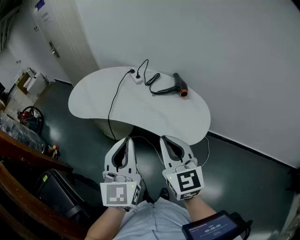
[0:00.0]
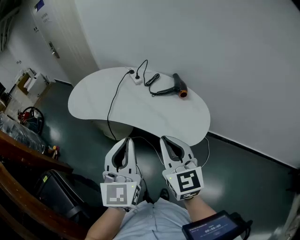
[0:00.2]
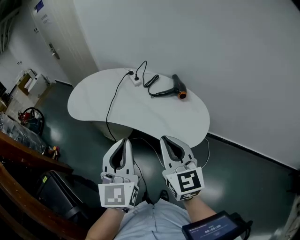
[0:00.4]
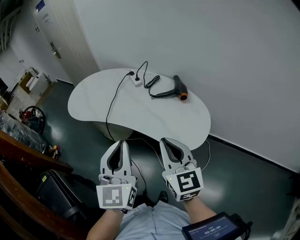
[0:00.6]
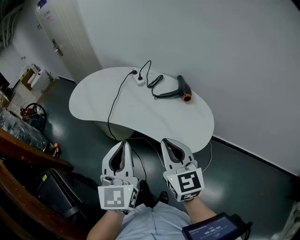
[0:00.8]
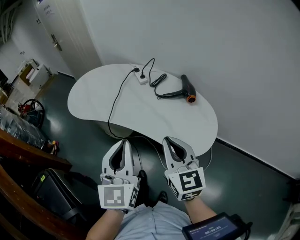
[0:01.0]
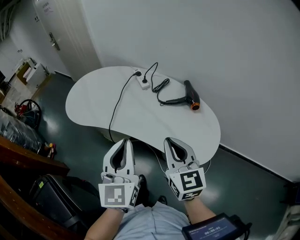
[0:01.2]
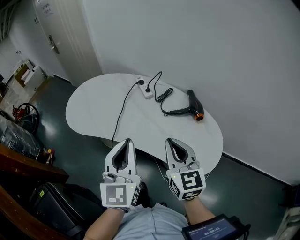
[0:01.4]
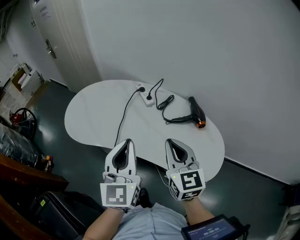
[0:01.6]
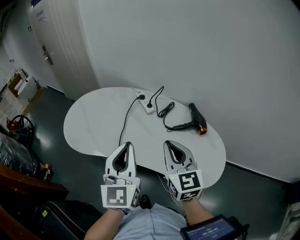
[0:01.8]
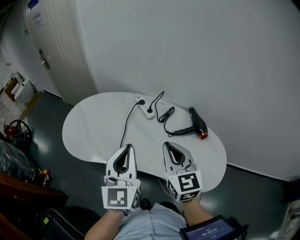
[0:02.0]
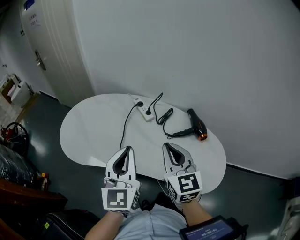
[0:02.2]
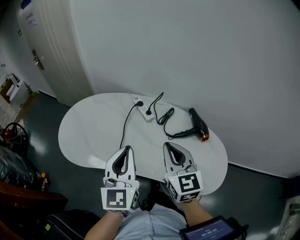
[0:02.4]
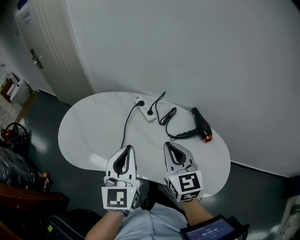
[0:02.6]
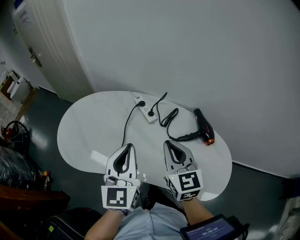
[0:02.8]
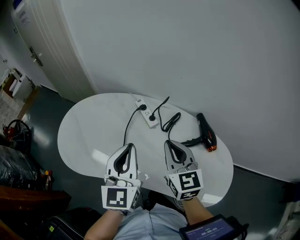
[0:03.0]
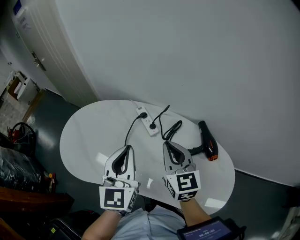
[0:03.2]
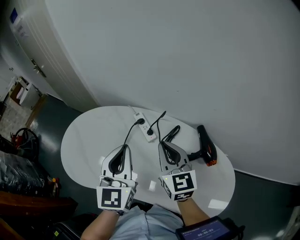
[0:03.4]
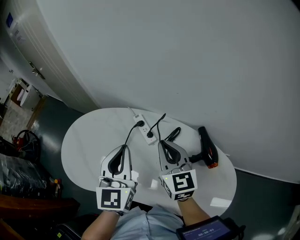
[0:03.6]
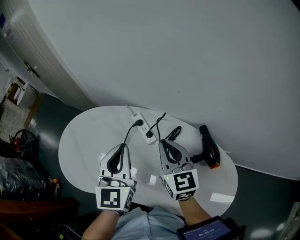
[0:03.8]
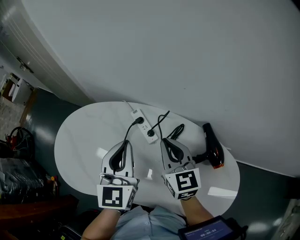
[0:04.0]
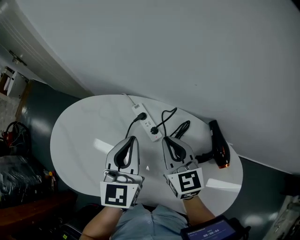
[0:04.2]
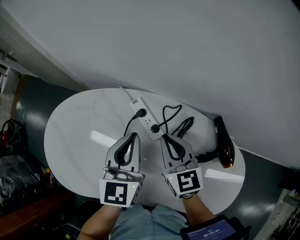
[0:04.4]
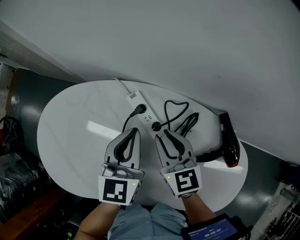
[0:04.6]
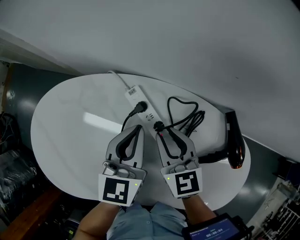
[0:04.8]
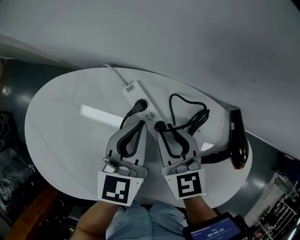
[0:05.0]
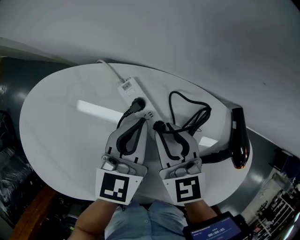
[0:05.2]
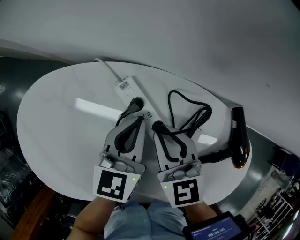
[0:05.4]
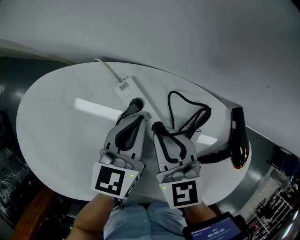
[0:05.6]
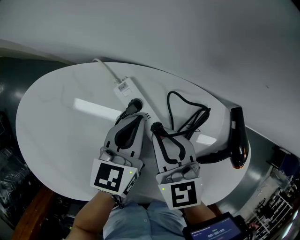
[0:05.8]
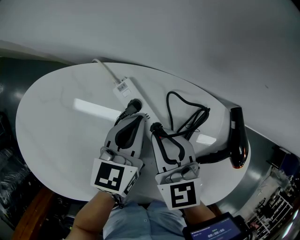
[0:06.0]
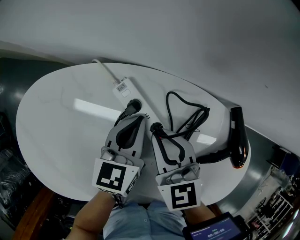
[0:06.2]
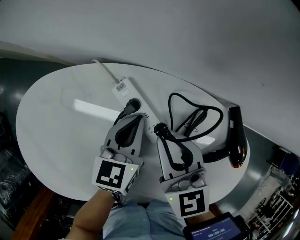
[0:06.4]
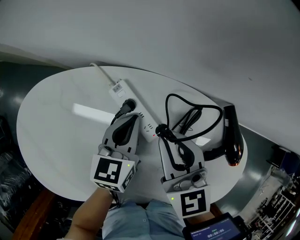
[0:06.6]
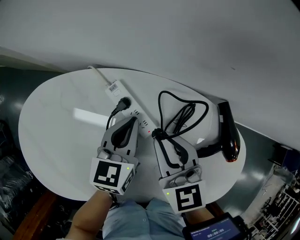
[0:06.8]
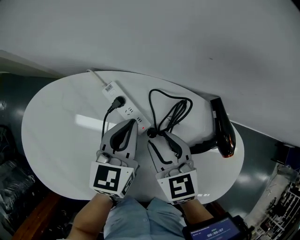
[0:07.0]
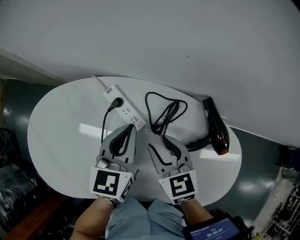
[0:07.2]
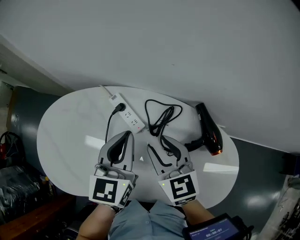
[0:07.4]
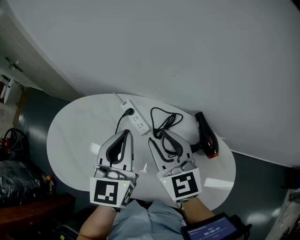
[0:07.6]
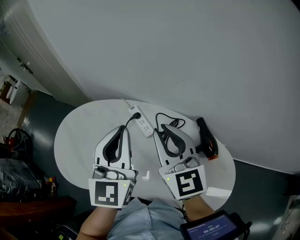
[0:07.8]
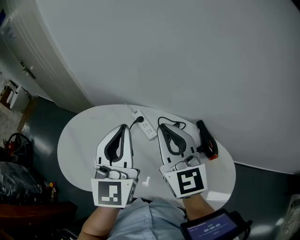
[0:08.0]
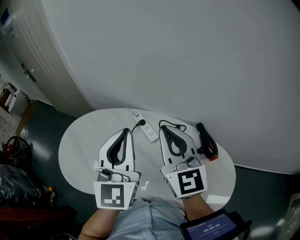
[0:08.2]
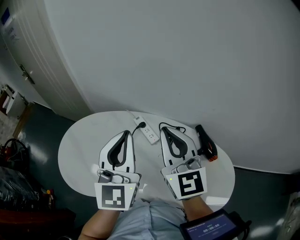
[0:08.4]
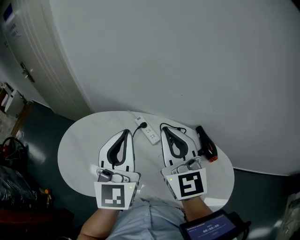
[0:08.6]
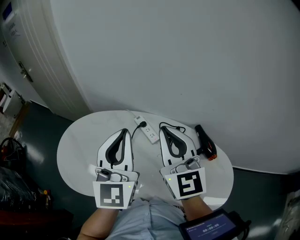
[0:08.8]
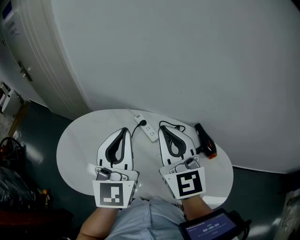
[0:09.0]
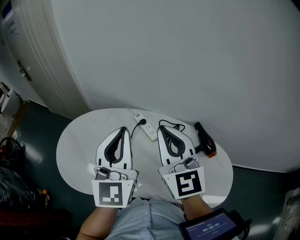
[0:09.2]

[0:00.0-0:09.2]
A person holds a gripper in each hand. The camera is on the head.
0:00.0 to 0:01.6: Both grippers travel together forward, approximately 20 cm.
0:01.6 to 0:03.0: Both grippers move forward, about 15 cm.
0:03.0 to 0:04.6: Both grippers move forward and downward, roughly 25 cm. The right gripper opens up.
0:04.6 to 0:06.2: The left gripper goes roughly 10 cm downward, and swivels approximately 20 degrees.
0:06.2 to 0:07.6: The left gripper moves upward and backward, about 30 cm, and turns by some 30 degrees. The right gripper moves up and down over some 20 cm, changing direction 2 times, changes its angle by roughly 20 degrees, and opens up.
0:07.6 to 0:09.2: The left gripper moves upward and to the left, approximately 10 cm. Meanwhile the right gripper heads upward, covering some 10 cm, and closes its fingers.

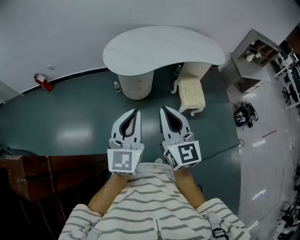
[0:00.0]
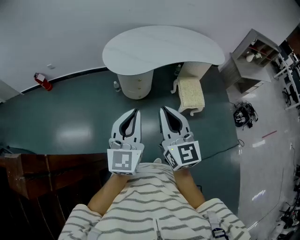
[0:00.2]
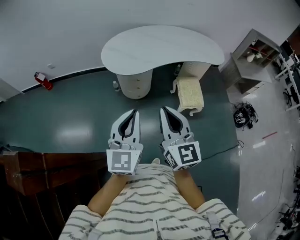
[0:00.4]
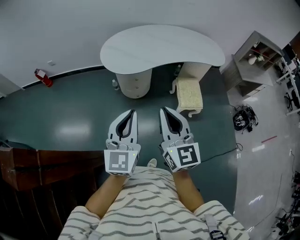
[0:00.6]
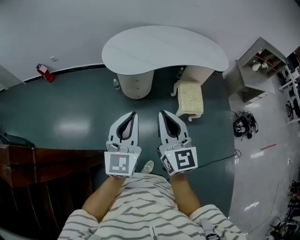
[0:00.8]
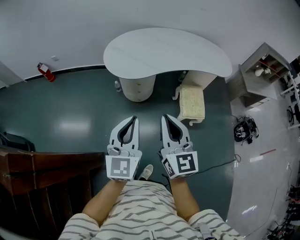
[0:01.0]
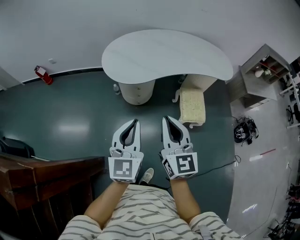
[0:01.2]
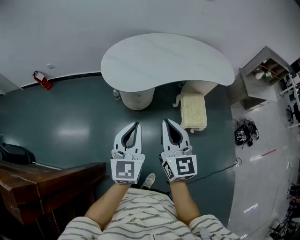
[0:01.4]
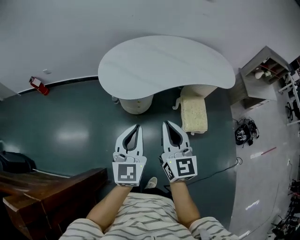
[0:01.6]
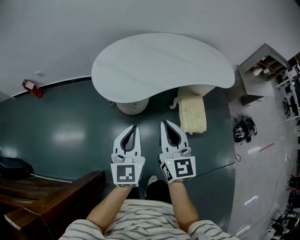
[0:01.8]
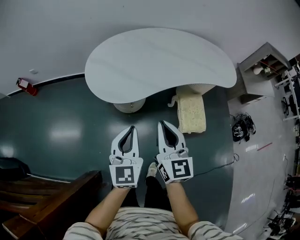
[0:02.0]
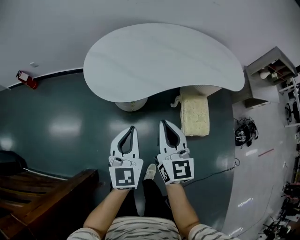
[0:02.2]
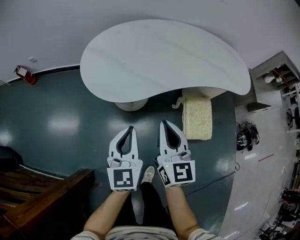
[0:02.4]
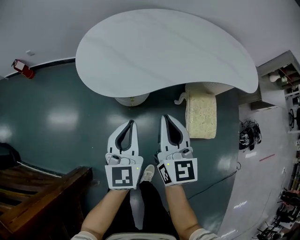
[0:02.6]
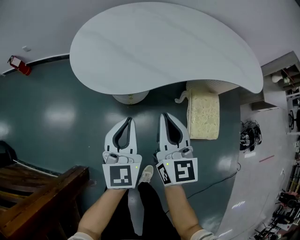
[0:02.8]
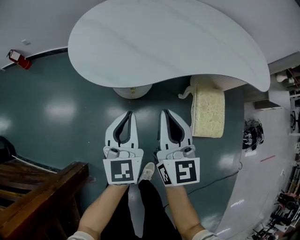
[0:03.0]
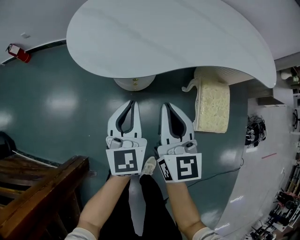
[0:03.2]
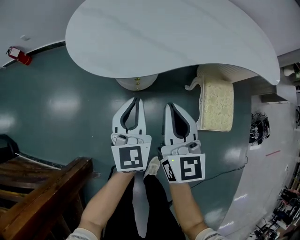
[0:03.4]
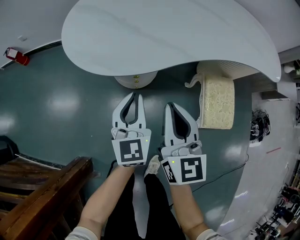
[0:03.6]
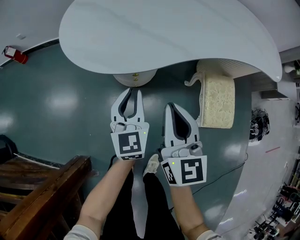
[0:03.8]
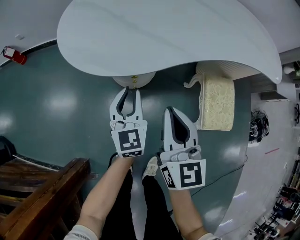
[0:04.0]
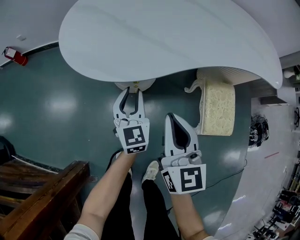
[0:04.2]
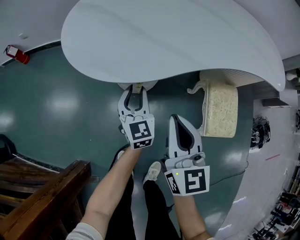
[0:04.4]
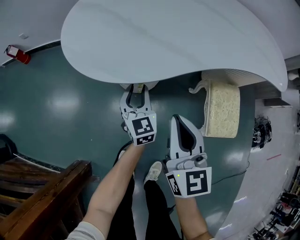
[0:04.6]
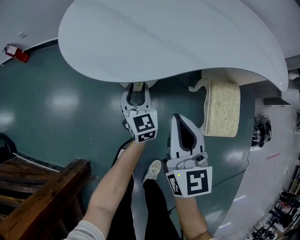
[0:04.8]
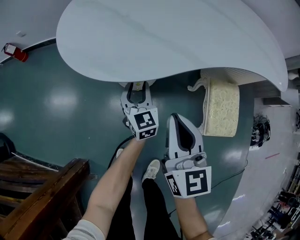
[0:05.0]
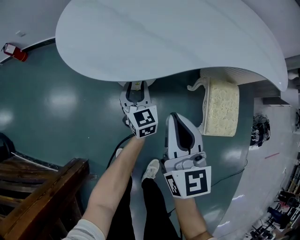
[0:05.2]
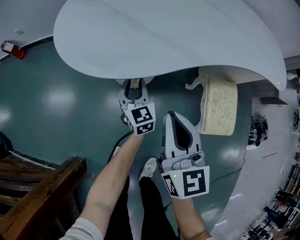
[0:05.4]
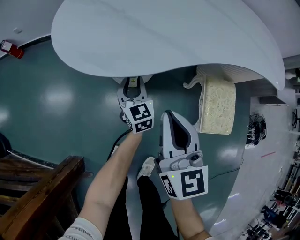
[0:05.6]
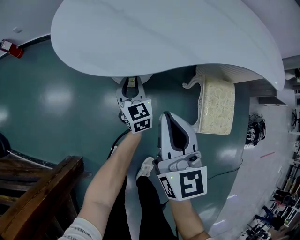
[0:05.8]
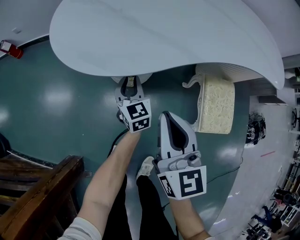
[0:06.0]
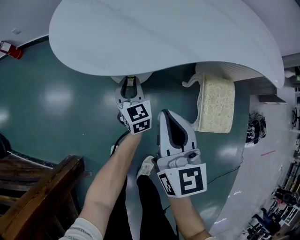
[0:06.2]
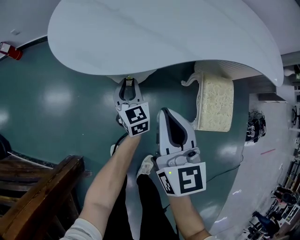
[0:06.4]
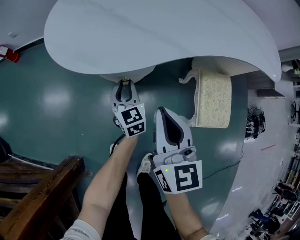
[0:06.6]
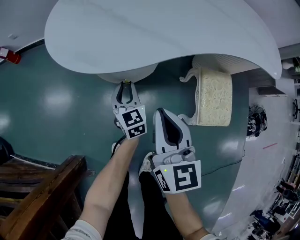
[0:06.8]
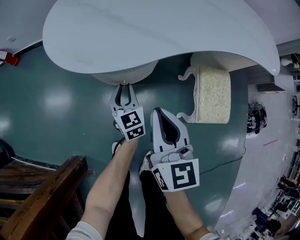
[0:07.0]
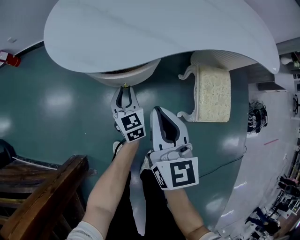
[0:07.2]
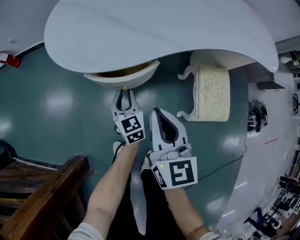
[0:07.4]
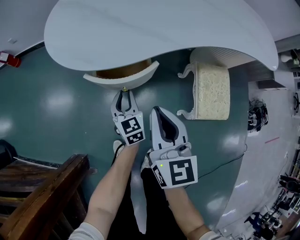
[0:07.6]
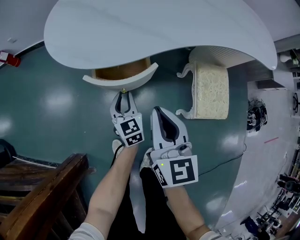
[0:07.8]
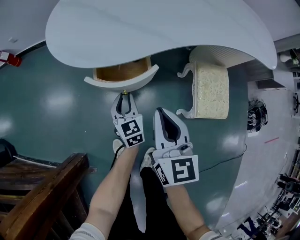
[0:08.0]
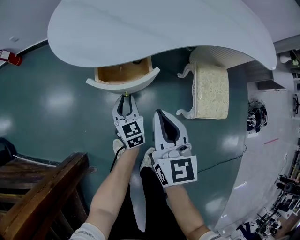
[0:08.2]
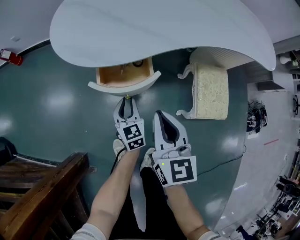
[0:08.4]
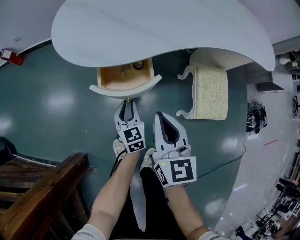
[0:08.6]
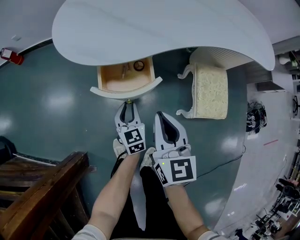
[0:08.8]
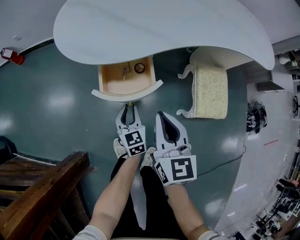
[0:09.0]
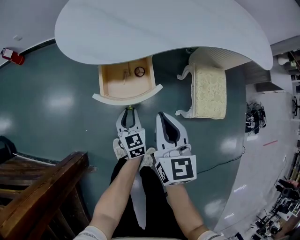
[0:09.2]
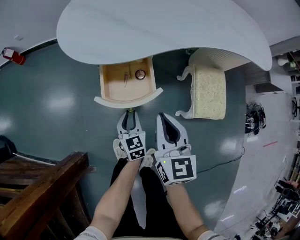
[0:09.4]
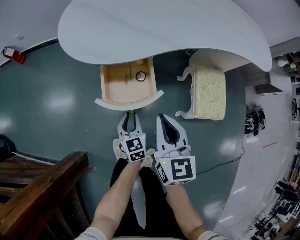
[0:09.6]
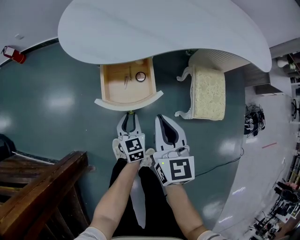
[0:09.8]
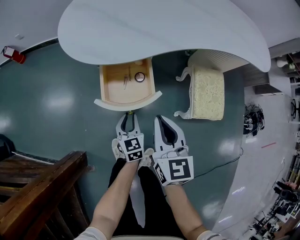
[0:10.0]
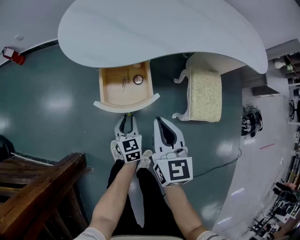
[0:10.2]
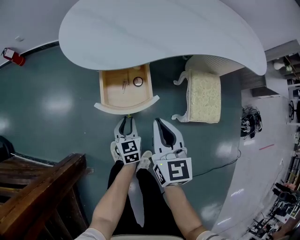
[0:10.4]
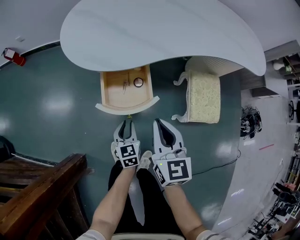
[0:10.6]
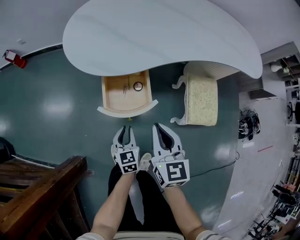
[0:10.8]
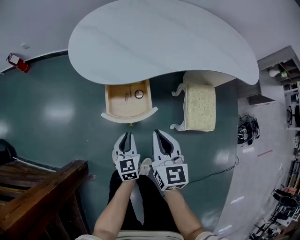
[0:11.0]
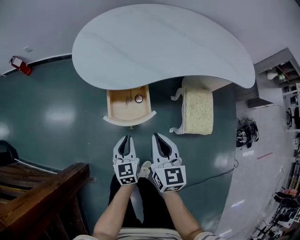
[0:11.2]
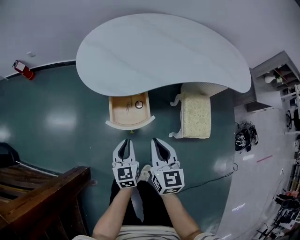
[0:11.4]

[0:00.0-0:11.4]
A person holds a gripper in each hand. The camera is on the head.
0:00.0 to 0:01.4: The right gripper travels forward by roughly 15 cm. The left gripper goes some 15 cm forward and downward.
0:01.4 to 0:02.8: Both grippers travel together downward and forward, approximately 35 cm.
0:02.8 to 0:04.2: The right gripper moves downward, approximately 10 cm; the left gripper goes about 20 cm downward and forward, and opens.
0:04.2 to 0:05.6: The left gripper heads downward, covering roughly 10 cm.
0:05.6 to 0:07.2: The left gripper travels backward by some 5 cm.
0:07.2 to 0:08.6: The left gripper shifts approximately 10 cm backward.
0:08.6 to 0:10.0: The left gripper heads backward, covering approximately 5 cm.
0:10.0 to 0:11.4: The left gripper goes approximately 20 cm upward, while the right gripper goes some 10 cm upward.

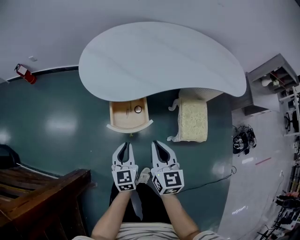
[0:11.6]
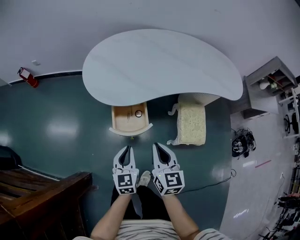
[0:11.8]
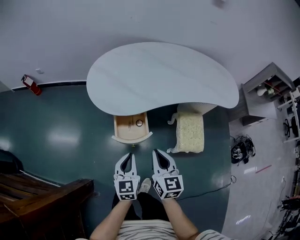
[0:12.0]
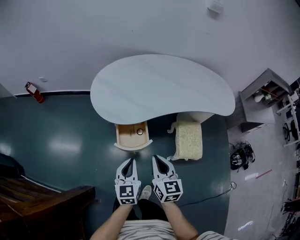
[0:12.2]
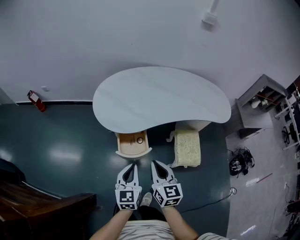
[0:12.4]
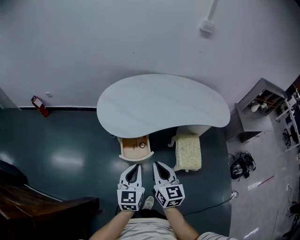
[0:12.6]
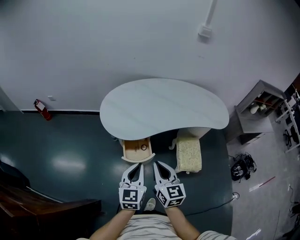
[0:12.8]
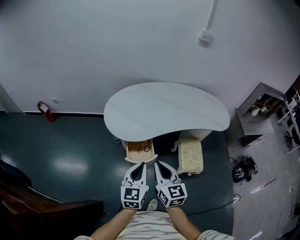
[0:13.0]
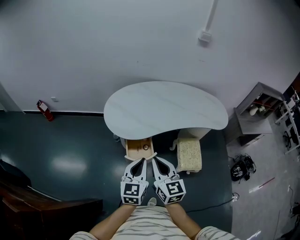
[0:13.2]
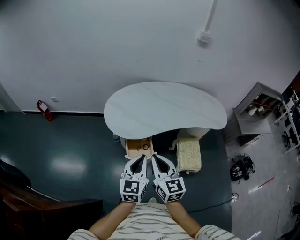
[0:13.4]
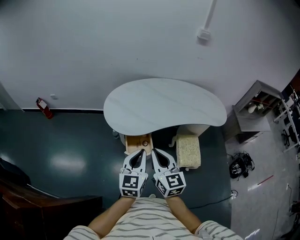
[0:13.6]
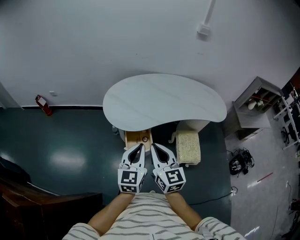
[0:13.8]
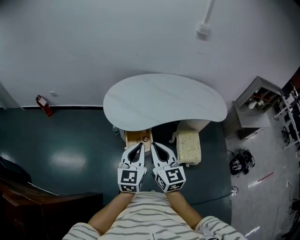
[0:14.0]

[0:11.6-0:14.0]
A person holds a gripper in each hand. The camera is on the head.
0:11.6 to 0:12.8: The grippers both shift upward by approximately 25 cm.
0:12.8 to 0:14.0: The two grippers go approximately 5 cm upward.

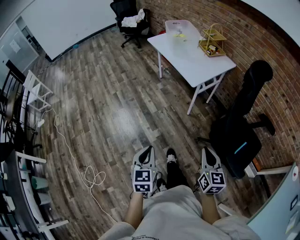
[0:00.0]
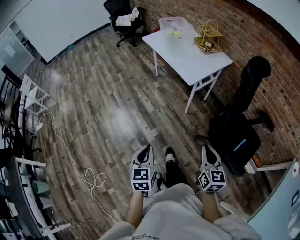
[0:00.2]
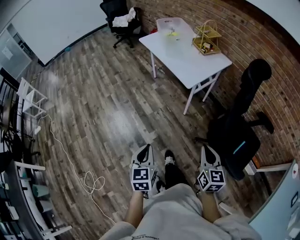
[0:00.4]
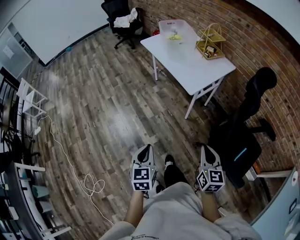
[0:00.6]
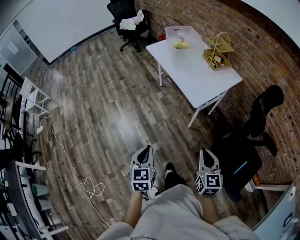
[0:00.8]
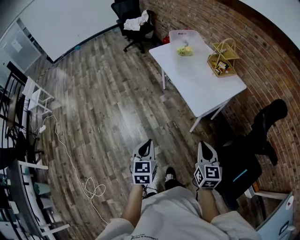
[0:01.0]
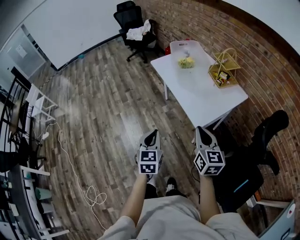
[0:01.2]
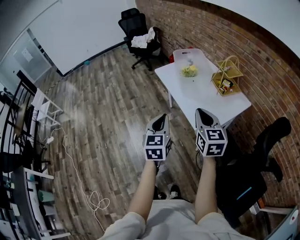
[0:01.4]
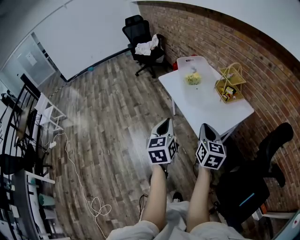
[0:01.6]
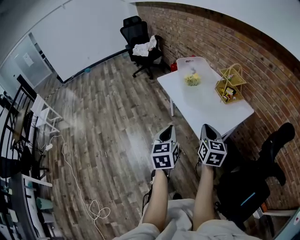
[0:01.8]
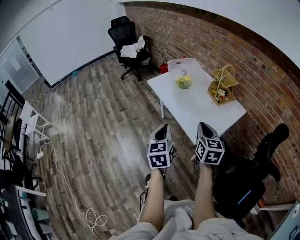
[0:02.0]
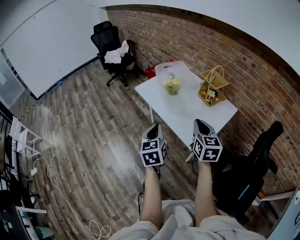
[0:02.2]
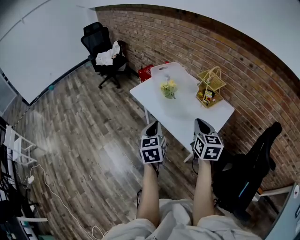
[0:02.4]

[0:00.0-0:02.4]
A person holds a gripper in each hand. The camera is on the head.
0:00.0 to 0:01.2: Both grippers move forward, about 40 cm.
0:01.2 to 0:02.4: Both grippers travel together forward, approximately 20 cm.
